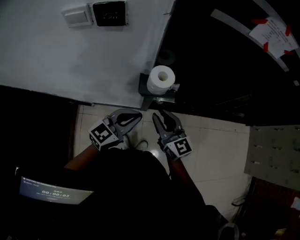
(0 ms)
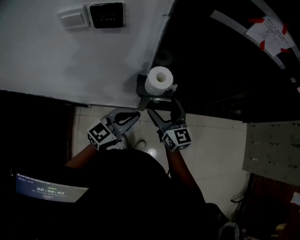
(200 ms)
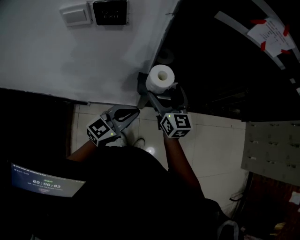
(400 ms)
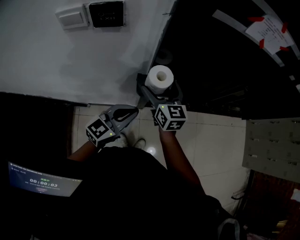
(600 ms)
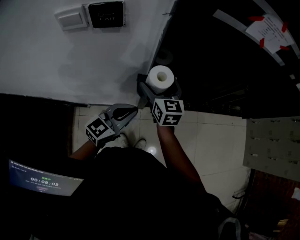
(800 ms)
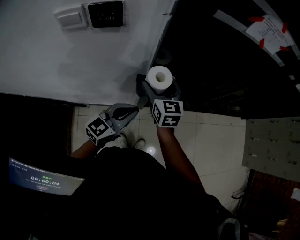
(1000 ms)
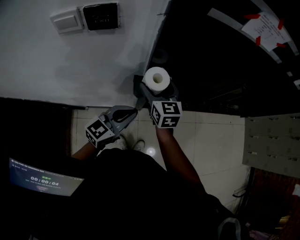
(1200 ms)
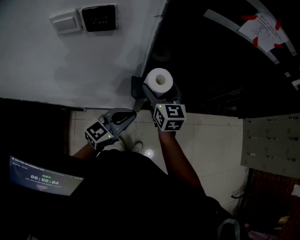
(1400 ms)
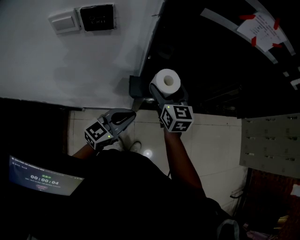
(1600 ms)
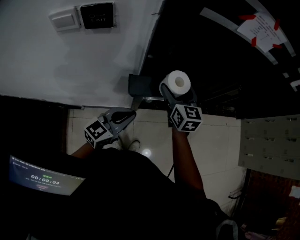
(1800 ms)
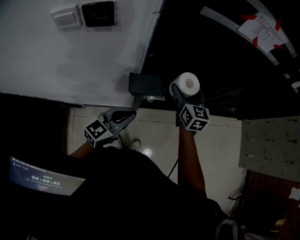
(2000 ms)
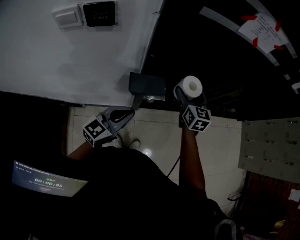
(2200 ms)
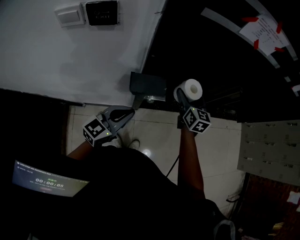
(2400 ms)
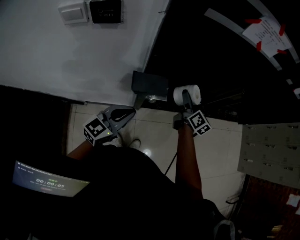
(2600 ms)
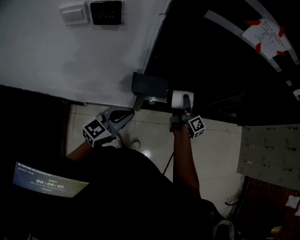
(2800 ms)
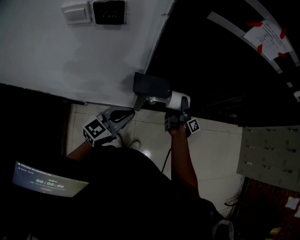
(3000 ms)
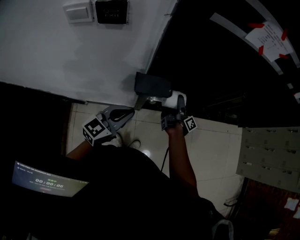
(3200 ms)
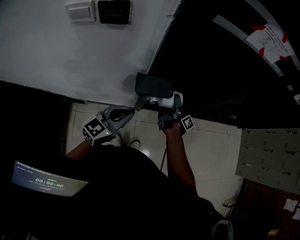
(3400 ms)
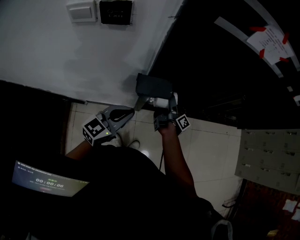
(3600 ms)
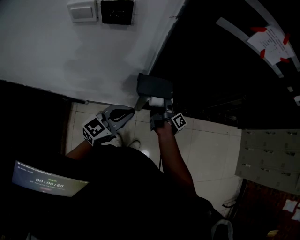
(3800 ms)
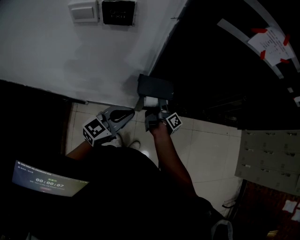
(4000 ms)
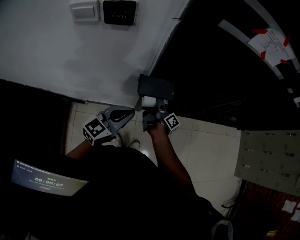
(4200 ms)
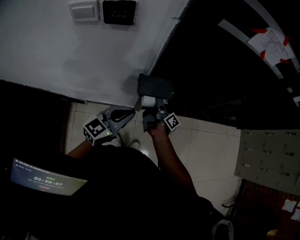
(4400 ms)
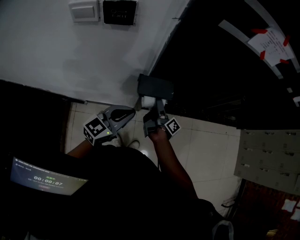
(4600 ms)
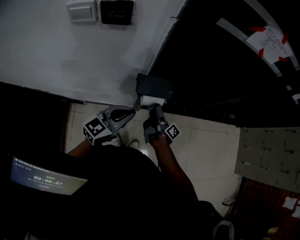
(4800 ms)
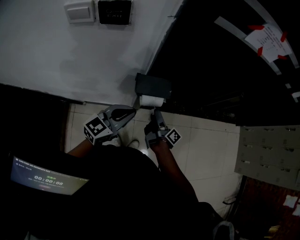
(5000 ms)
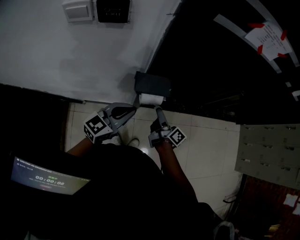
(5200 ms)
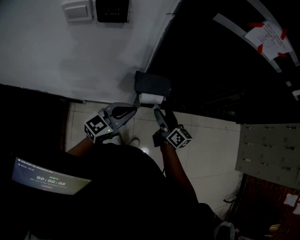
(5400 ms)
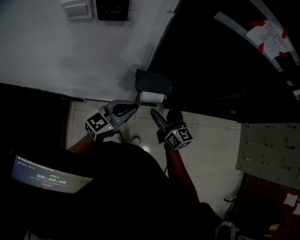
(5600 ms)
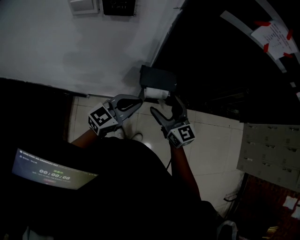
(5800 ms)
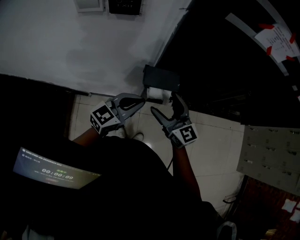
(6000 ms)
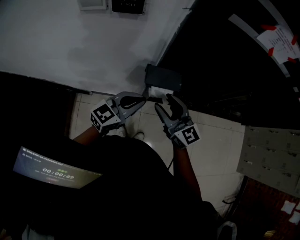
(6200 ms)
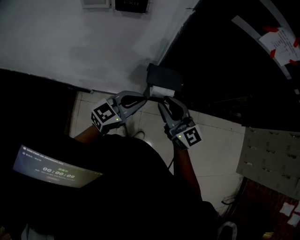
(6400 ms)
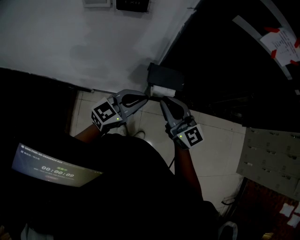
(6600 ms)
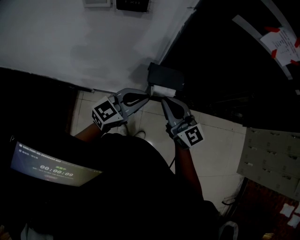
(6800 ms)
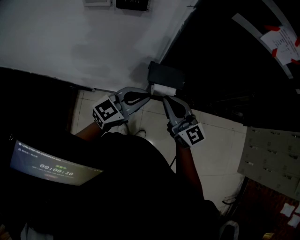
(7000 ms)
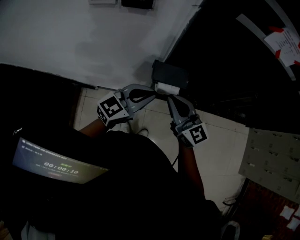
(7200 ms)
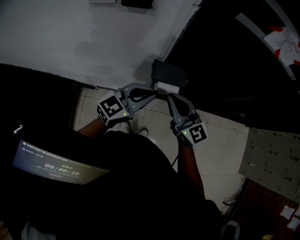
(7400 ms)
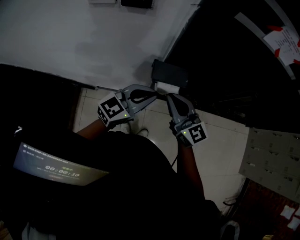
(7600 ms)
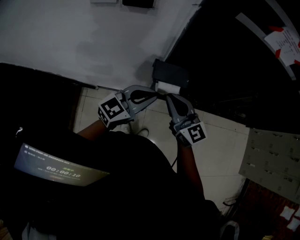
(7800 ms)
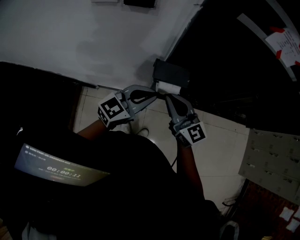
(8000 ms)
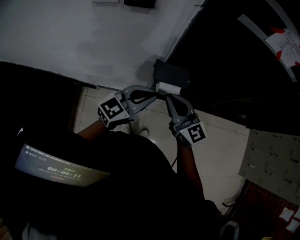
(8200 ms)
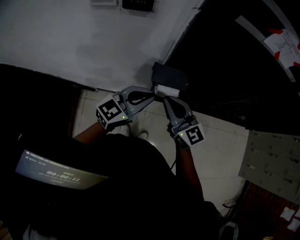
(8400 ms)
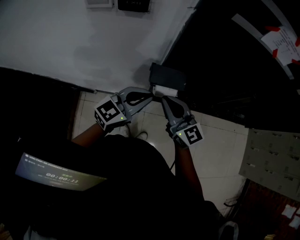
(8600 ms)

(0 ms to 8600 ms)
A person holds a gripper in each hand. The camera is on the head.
0 ms - 1400 ms: The right gripper moves forward, approximately 15 cm, swivels roughly 20 degrees, and opens its fingers.
1400 ms - 2800 ms: The right gripper travels to the right and downward by about 25 cm, and rotates around the line of its fingers by approximately 70 degrees, clockwise from behind.
2800 ms - 4400 ms: The right gripper travels to the left and backward by some 15 cm, and changes its angle by roughly 20 degrees.
4400 ms - 5800 ms: The right gripper is displaced upward and backward by some 15 cm, and rolls counterclockwise, seen from behind, by some 90 degrees.
5800 ms - 7200 ms: The right gripper changes place by about 5 cm, and closes up.
7200 ms - 8600 ms: The grippers make only small movements.

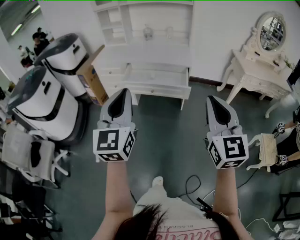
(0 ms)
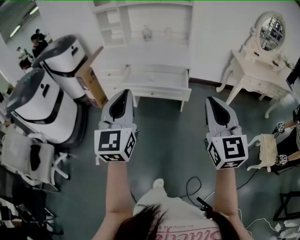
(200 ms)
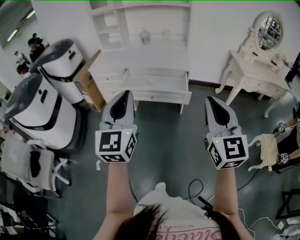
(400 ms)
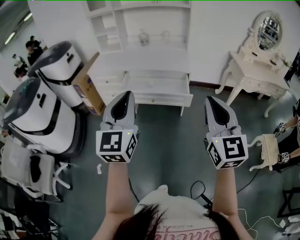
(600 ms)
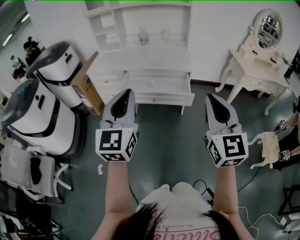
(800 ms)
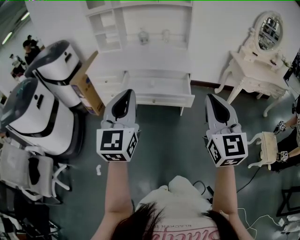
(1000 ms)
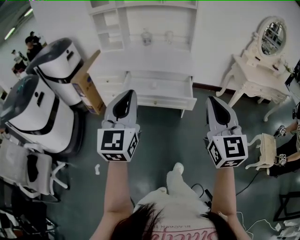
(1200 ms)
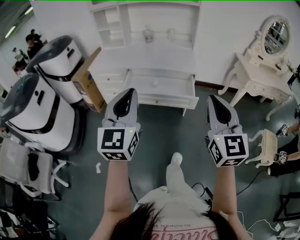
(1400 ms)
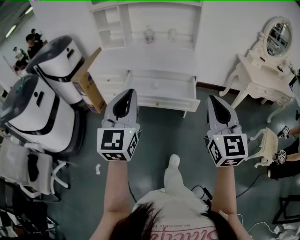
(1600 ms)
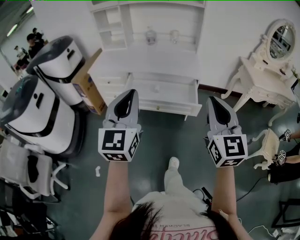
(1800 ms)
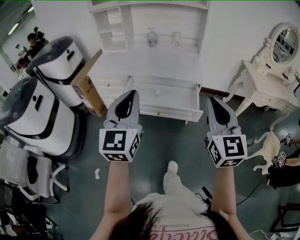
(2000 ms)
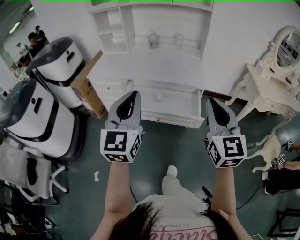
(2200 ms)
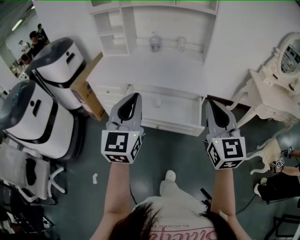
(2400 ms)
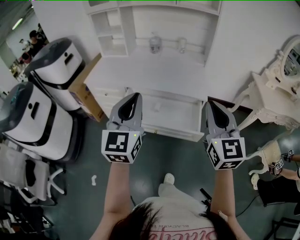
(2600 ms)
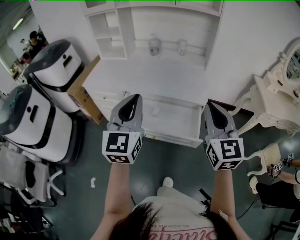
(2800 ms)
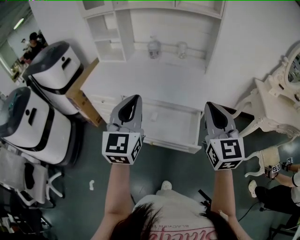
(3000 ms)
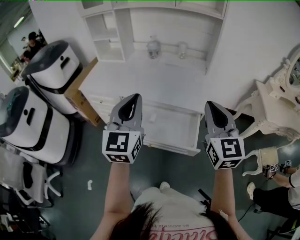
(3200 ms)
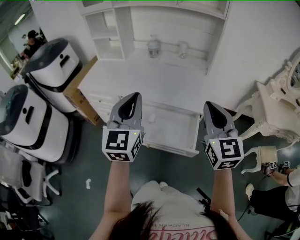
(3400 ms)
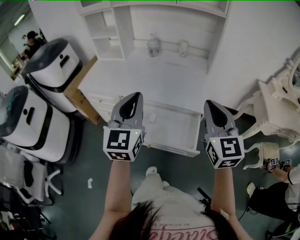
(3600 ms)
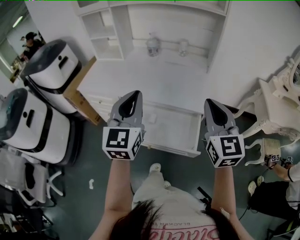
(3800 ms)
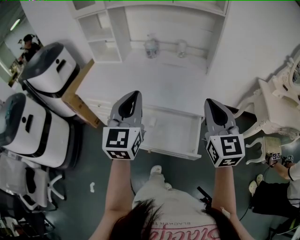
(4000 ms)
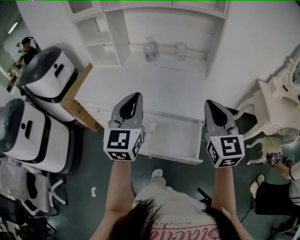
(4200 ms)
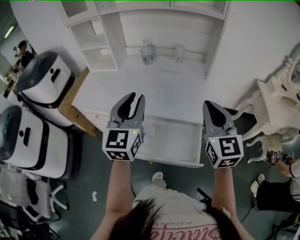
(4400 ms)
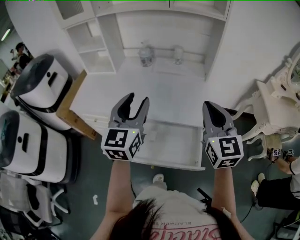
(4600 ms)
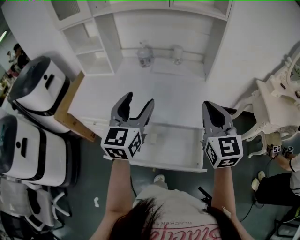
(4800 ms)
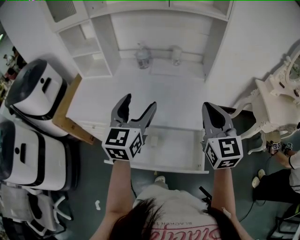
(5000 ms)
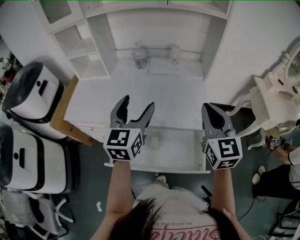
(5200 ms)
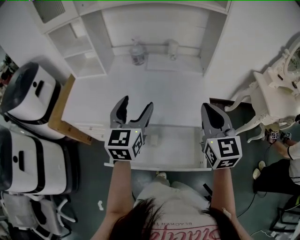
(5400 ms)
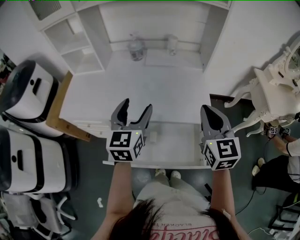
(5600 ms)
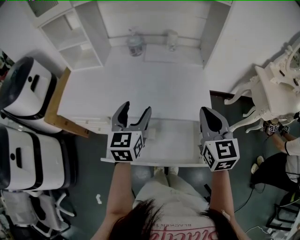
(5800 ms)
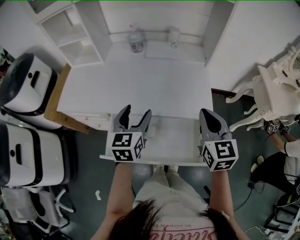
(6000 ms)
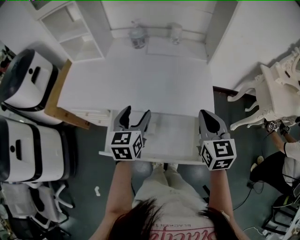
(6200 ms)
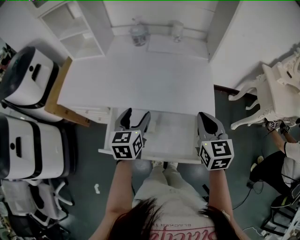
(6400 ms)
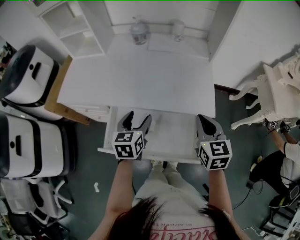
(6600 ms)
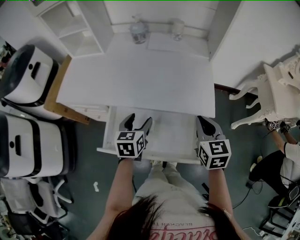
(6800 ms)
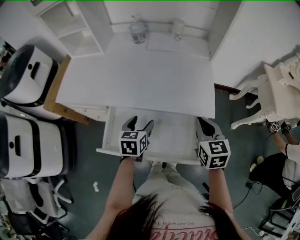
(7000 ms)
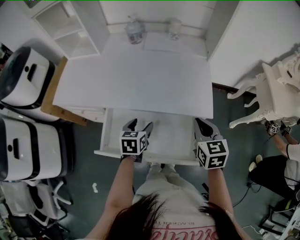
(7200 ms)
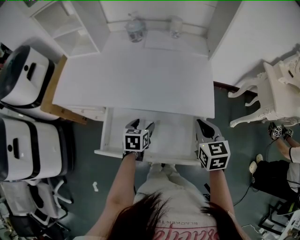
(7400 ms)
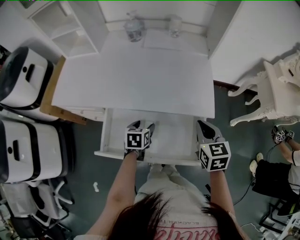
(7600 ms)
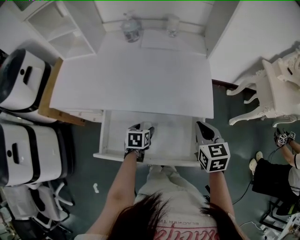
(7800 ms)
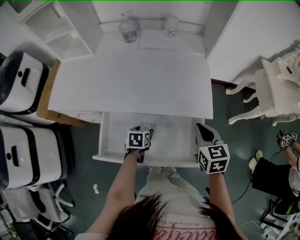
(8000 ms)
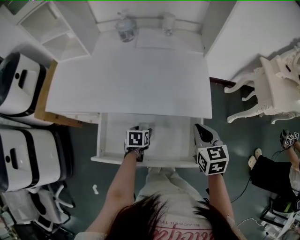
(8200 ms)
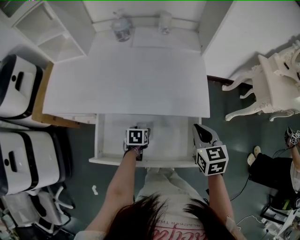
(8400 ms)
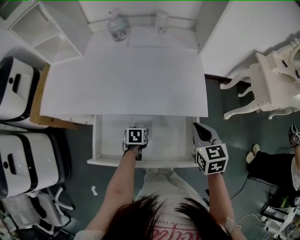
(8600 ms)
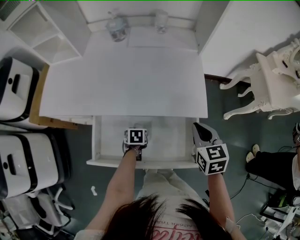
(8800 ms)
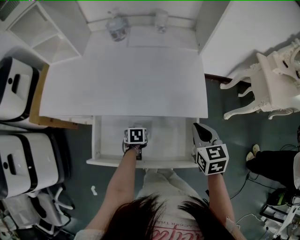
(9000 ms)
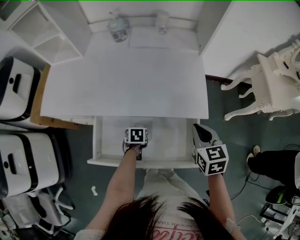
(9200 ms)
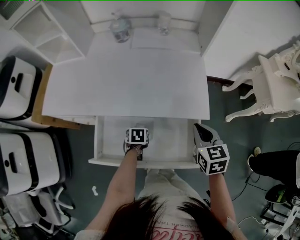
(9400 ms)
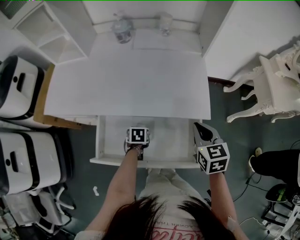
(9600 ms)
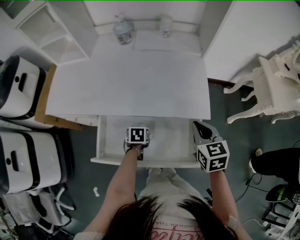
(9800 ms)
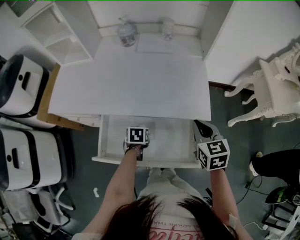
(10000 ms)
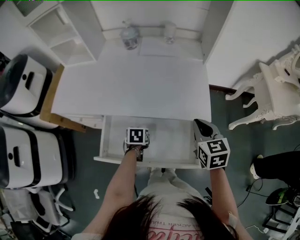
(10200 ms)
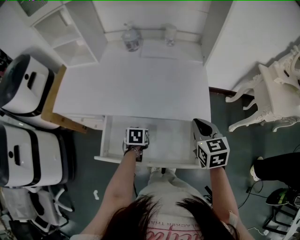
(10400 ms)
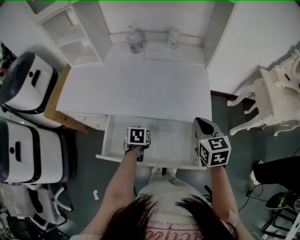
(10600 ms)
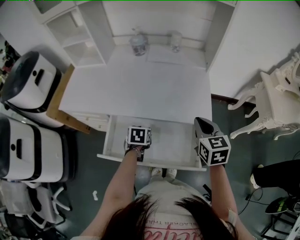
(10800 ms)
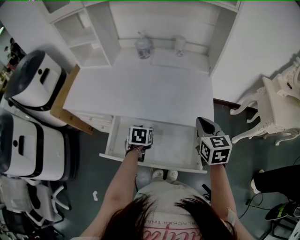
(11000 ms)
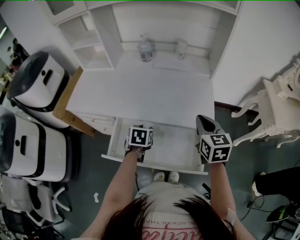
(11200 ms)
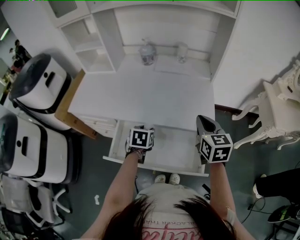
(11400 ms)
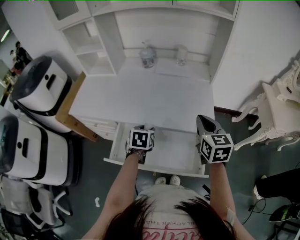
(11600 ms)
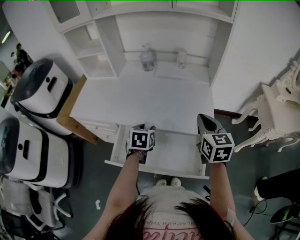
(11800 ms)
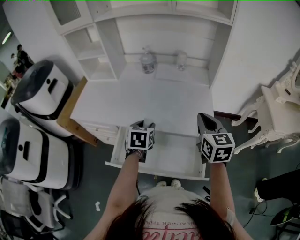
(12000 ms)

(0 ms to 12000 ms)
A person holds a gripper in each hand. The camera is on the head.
0 ms - 1600 ms: The grippers both shift forward by some 15 cm.
1600 ms - 3000 ms: The two grippers go roughly 30 cm forward.
3000 ms - 4400 ms: Both grippers travel together forward, some 15 cm.
4400 ms - 6000 ms: The grippers both shift downward and forward by approximately 15 cm. The left gripper swivels some 20 degrees, and opens its fingers.
6000 ms - 7600 ms: The left gripper moves downward, roughly 20 cm, and tips its fingers downward by about 30 degrees, while the right gripper travels downward by some 10 cm.
7600 ms - 9000 ms: The left gripper heads downward, covering some 10 cm, and turns by approximately 20 degrees.
9000 ms - 10400 ms: The right gripper moves approximately 5 cm. Meanwhile the left gripper travels upward by about 10 cm.
10400 ms - 12000 ms: The right gripper goes approximately 10 cm upward, while the left gripper travels upward by roughly 15 cm, and changes its angle by roughly 20 degrees.

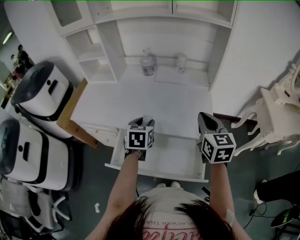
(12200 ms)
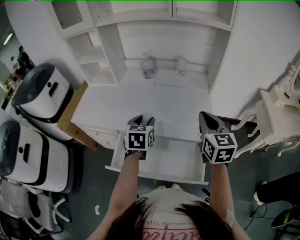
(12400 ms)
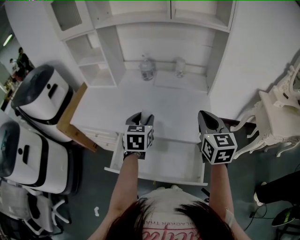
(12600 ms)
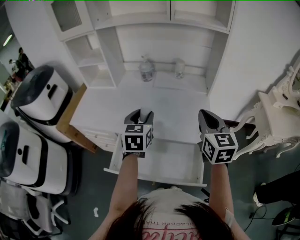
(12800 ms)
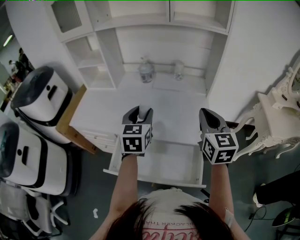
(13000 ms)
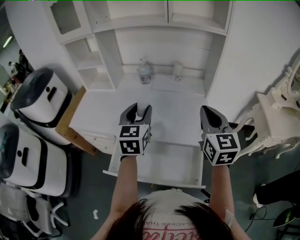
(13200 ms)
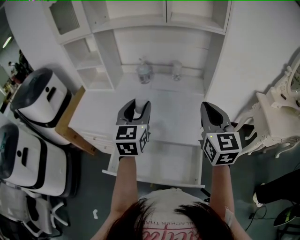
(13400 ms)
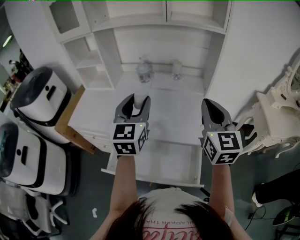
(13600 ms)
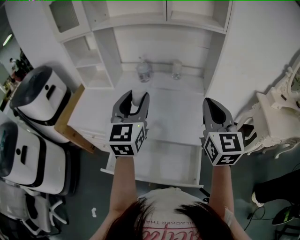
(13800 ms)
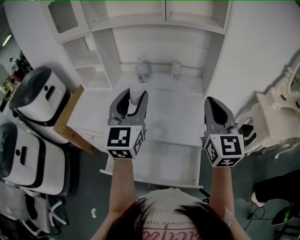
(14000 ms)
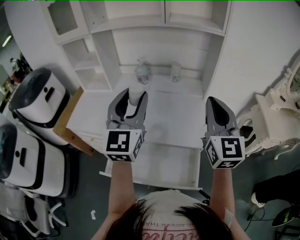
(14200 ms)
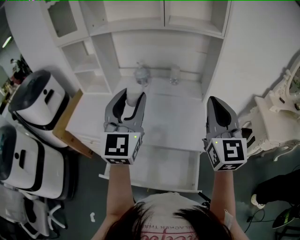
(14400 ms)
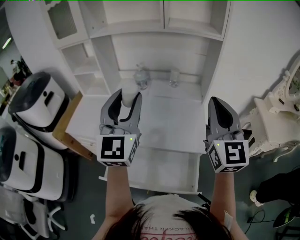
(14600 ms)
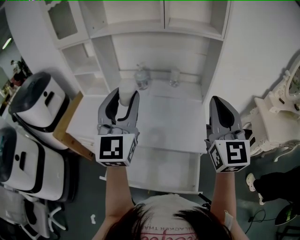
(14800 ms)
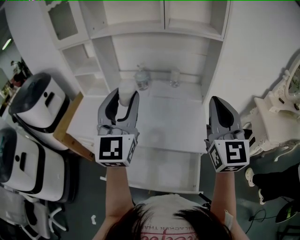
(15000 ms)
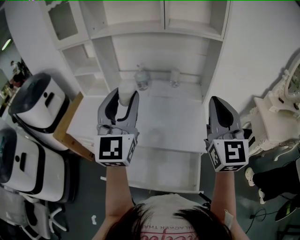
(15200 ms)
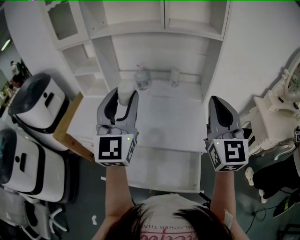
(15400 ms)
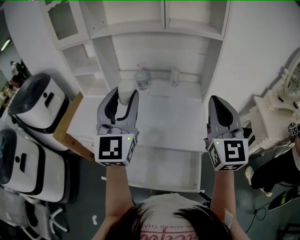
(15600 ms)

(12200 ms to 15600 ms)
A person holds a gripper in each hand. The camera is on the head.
12200 ms - 13800 ms: The left gripper moves upward, approximately 20 cm, and tips its fingers upward by approximately 40 degrees; the right gripper is displaced upward by some 10 cm.
13800 ms - 15600 ms: Both grippers travel together upward, about 5 cm.
